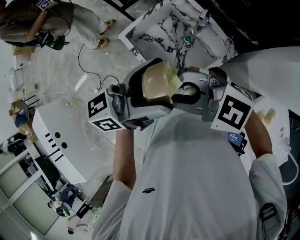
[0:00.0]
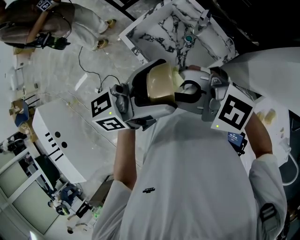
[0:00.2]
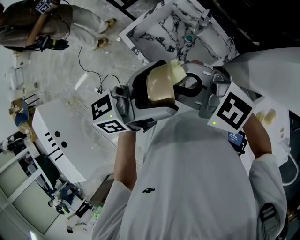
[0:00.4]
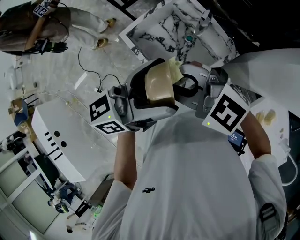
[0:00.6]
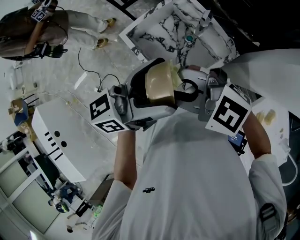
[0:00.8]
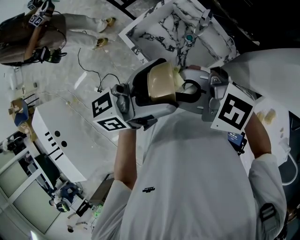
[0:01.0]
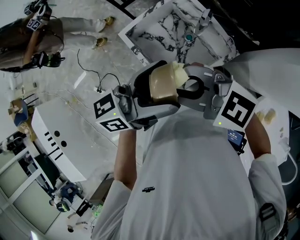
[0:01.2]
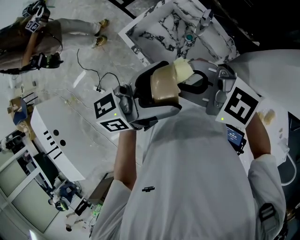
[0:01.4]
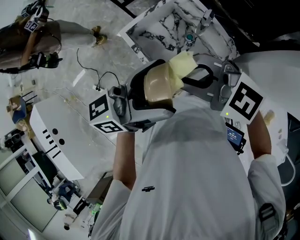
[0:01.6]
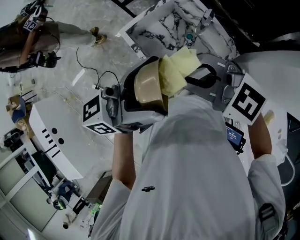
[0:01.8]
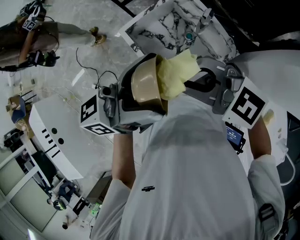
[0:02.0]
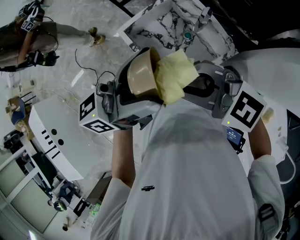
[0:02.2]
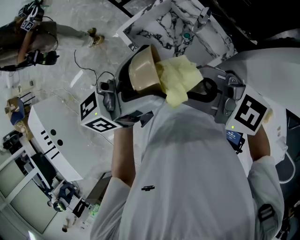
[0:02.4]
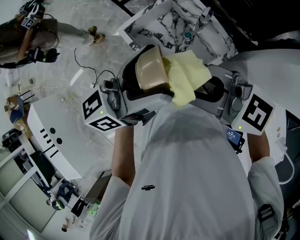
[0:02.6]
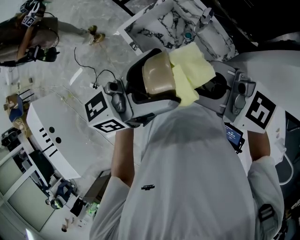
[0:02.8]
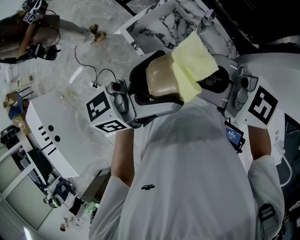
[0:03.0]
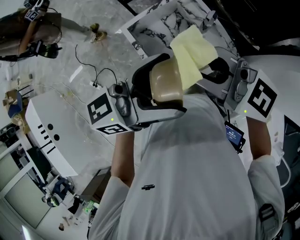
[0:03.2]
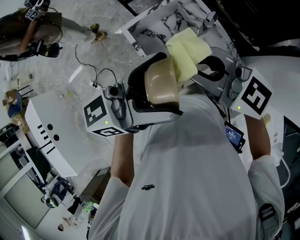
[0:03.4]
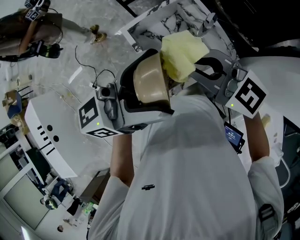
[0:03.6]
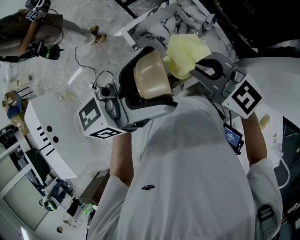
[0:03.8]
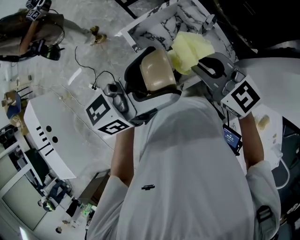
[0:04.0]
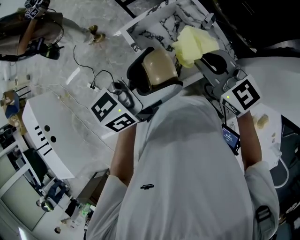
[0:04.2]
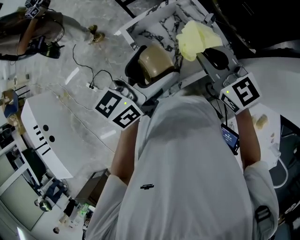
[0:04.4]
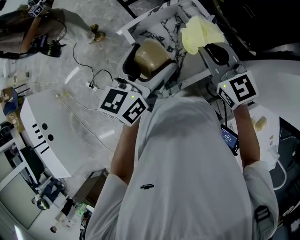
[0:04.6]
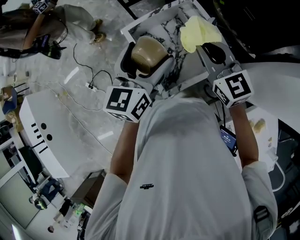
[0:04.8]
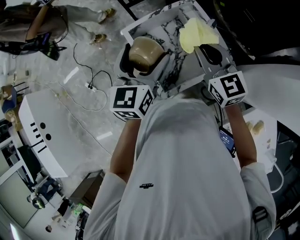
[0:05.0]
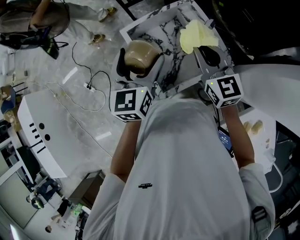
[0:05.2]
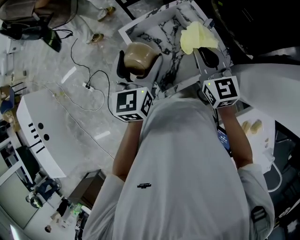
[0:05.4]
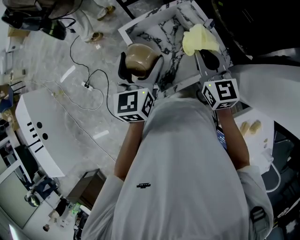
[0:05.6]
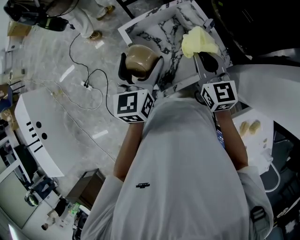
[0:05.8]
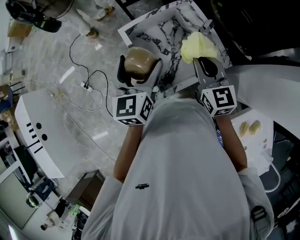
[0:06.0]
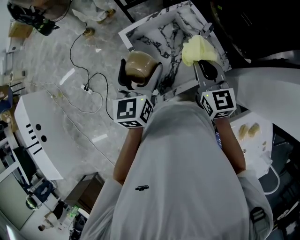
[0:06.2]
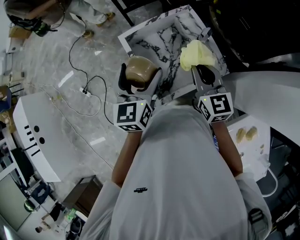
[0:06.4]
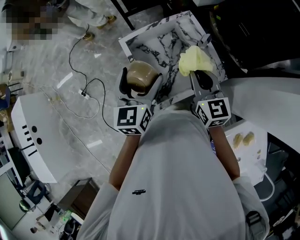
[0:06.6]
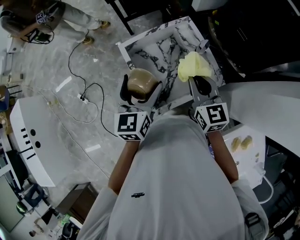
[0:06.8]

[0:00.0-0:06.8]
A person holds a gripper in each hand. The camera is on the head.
0:00.0 to 0:01.4: The grippers make only small movements.
0:01.4 to 0:02.8: The right gripper moves some 5 cm.
0:02.8 to 0:04.0: The right gripper travels downward by roughly 10 cm, and turns by approximately 30 degrees.
0:04.0 to 0:05.4: The right gripper goes about 10 cm forward, downward and to the right, and rotates roughly 30 degrees, while the left gripper shifts roughly 15 cm downward, to the left and forward, and swivels approximately 50 degrees.
0:05.4 to 0:06.8: The grippers move only a little.

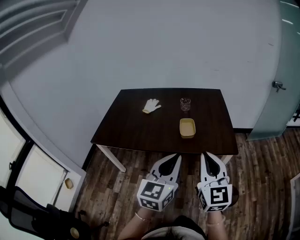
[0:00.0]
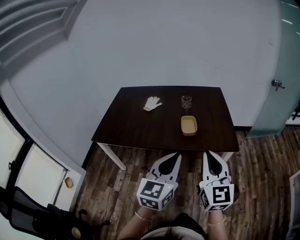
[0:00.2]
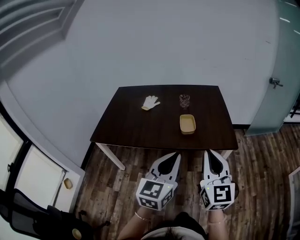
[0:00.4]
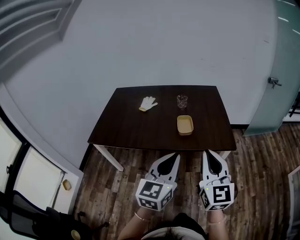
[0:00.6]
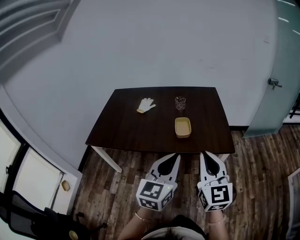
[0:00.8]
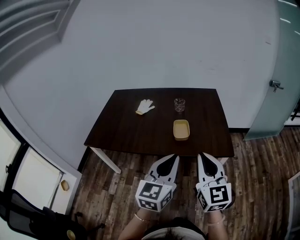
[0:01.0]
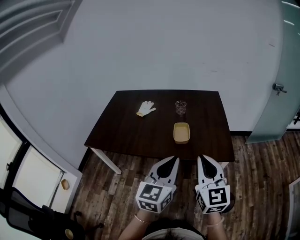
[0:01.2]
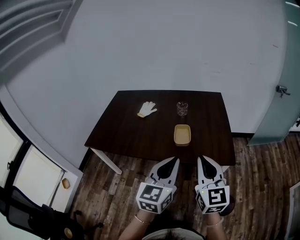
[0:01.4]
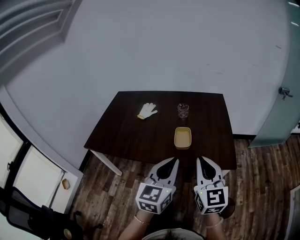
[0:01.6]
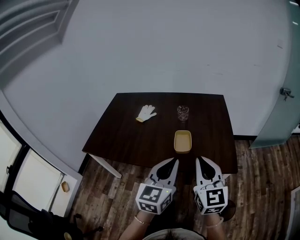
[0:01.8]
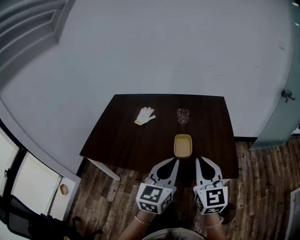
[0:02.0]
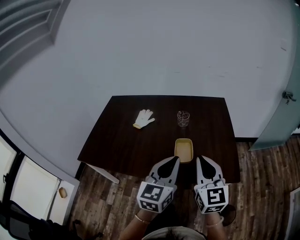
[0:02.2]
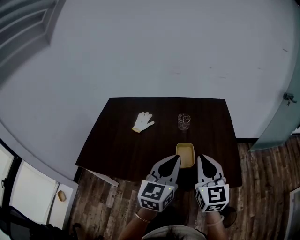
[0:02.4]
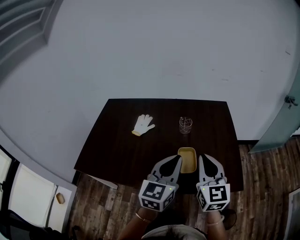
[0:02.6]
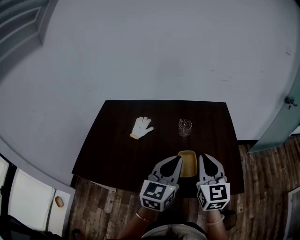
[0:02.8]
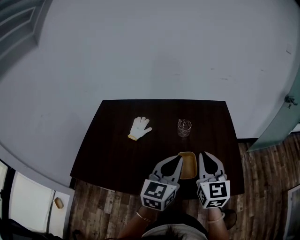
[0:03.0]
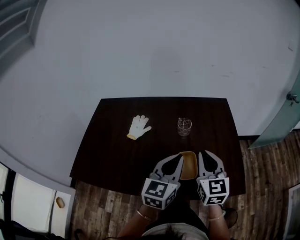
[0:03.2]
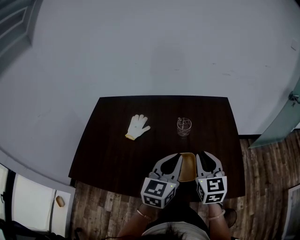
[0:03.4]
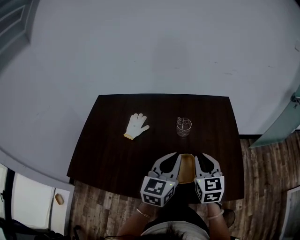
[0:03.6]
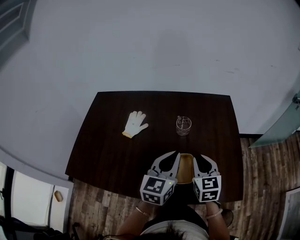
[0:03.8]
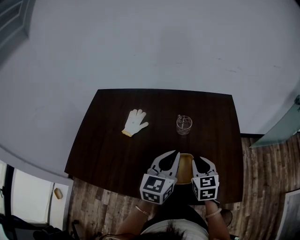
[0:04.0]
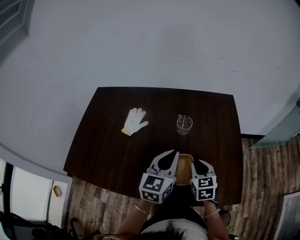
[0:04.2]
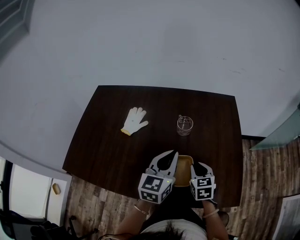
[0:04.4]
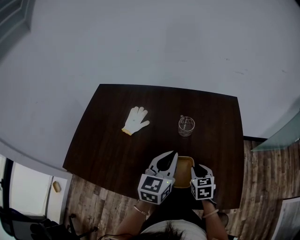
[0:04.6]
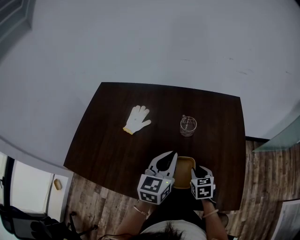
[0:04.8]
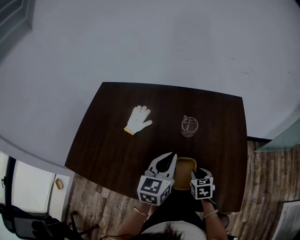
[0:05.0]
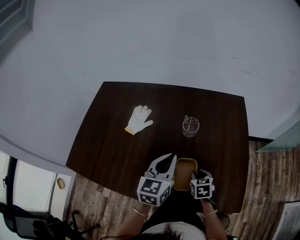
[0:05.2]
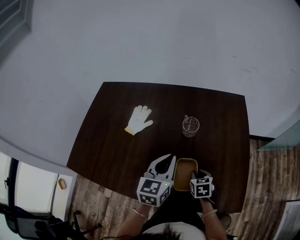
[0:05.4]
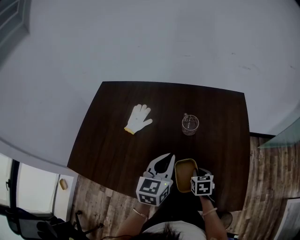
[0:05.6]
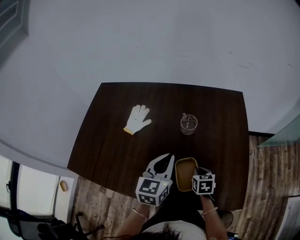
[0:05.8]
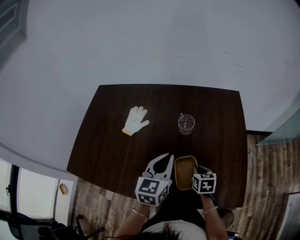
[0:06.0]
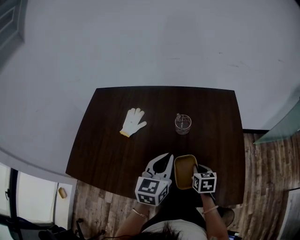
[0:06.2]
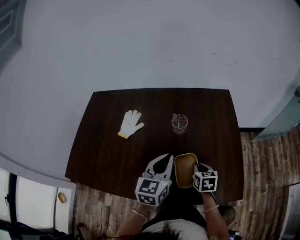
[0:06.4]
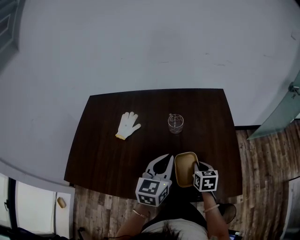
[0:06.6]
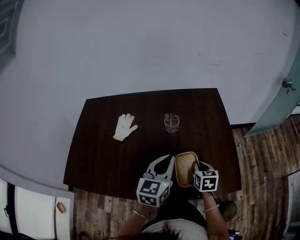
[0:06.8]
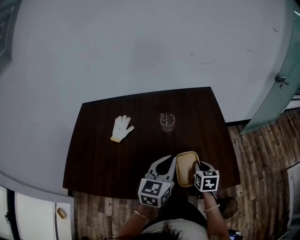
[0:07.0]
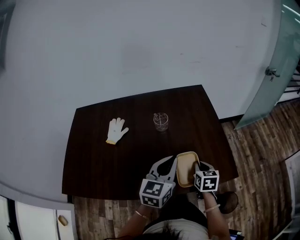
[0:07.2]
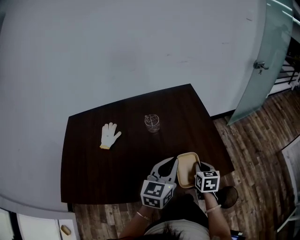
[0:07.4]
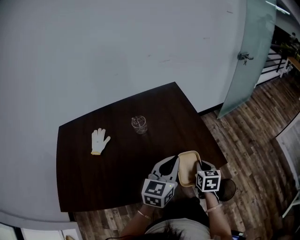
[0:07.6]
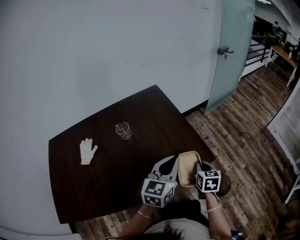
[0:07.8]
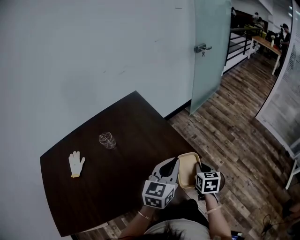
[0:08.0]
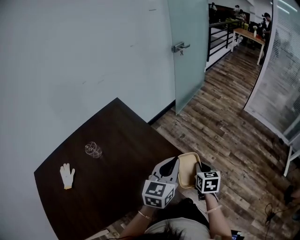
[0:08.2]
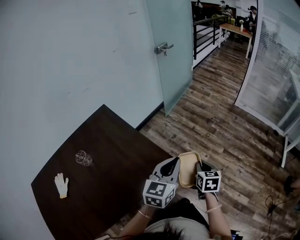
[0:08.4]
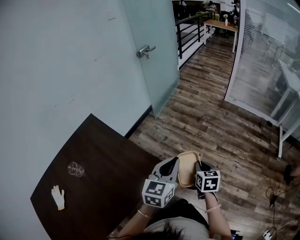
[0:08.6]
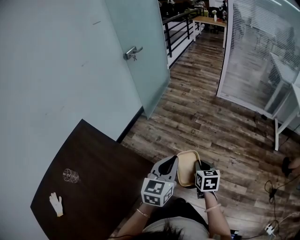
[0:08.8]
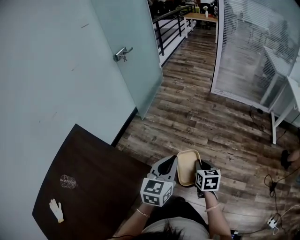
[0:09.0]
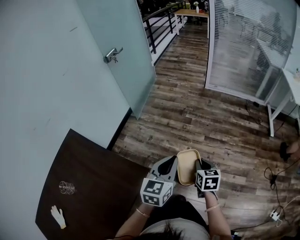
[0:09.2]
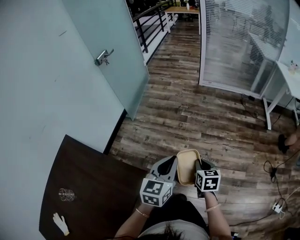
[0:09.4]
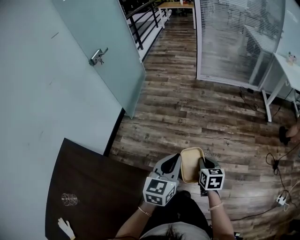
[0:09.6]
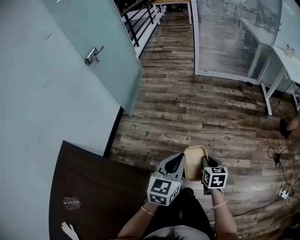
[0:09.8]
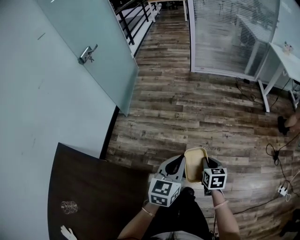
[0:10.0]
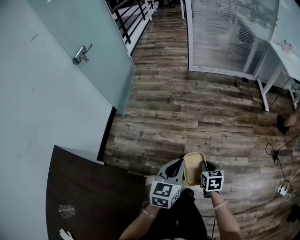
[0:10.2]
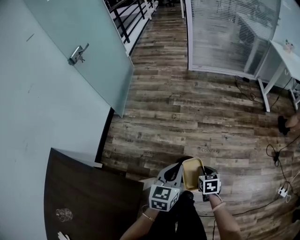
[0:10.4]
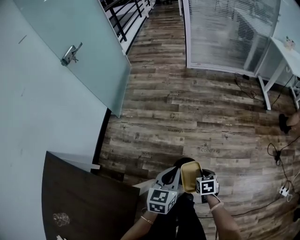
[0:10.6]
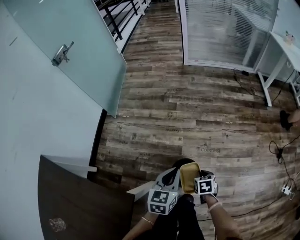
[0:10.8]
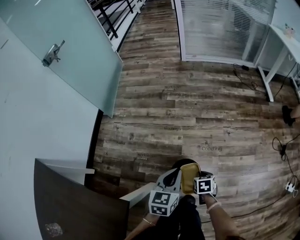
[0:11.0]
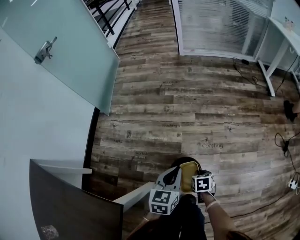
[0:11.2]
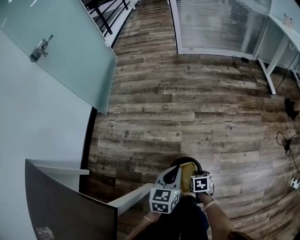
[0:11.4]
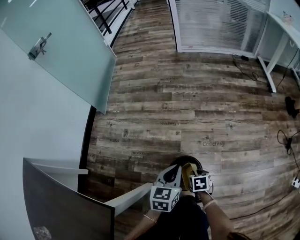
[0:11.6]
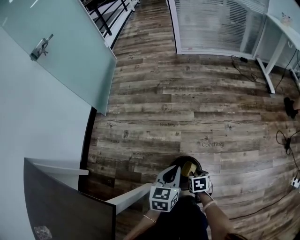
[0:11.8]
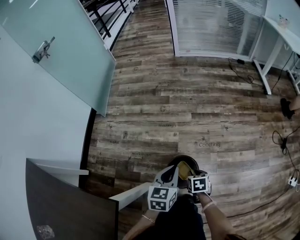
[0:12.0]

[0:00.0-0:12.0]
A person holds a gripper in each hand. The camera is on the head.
0:00.0 to 0:01.6: Both grippers move forward, some 15 cm.
0:01.6 to 0:03.0: Both grippers travel together forward, about 30 cm.
0:03.0 to 0:04.4: The left gripper moves forward and downward, about 15 cm, while the right gripper goes approximately 25 cm downward and forward, and tilts its fingers about 30 degrees downward.
0:04.4 to 0:06.0: The right gripper is displaced downward by about 5 cm.
0:06.0 to 0:07.6: The left gripper moves some 20 cm, and turns by approximately 30 degrees; the right gripper moves roughly 25 cm, and turns by approximately 30 degrees.
0:07.6 to 0:09.0: The pair of grippers is taken roughly 50 cm. The right gripper changes its angle by some 40 degrees, while the left gripper rotates about 40 degrees.
0:09.0 to 0:10.4: The right gripper moves downward, roughly 20 cm; the left gripper goes approximately 20 cm downward and forward.
0:10.4 to 0:12.0: Both grippers move downward, roughly 30 cm. The right gripper opens up.

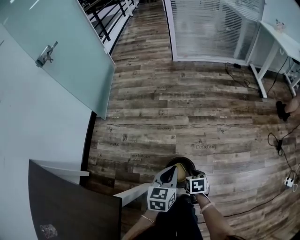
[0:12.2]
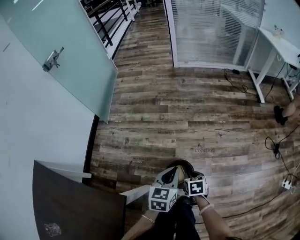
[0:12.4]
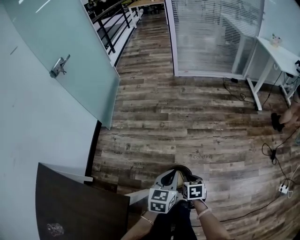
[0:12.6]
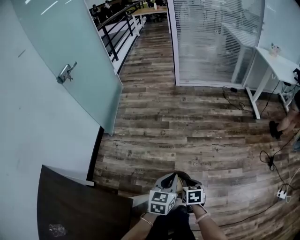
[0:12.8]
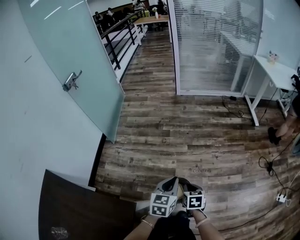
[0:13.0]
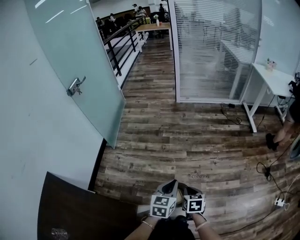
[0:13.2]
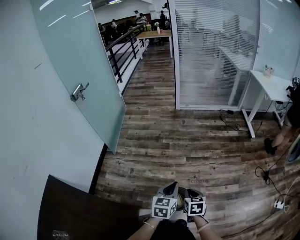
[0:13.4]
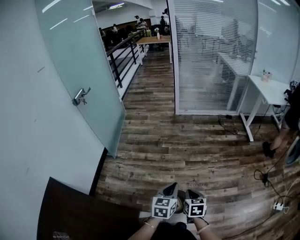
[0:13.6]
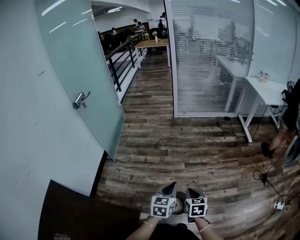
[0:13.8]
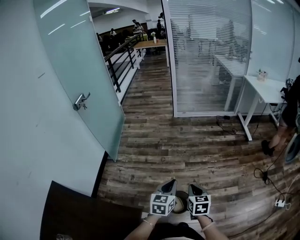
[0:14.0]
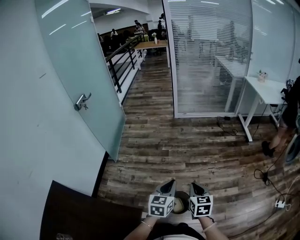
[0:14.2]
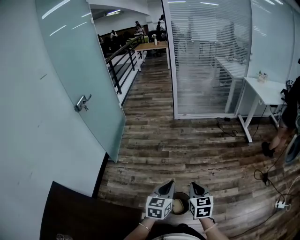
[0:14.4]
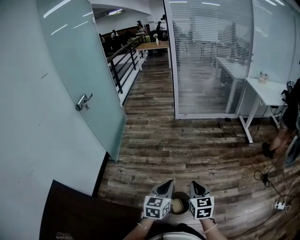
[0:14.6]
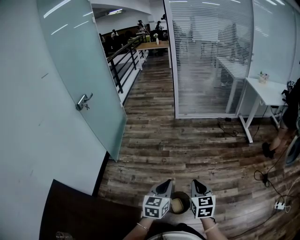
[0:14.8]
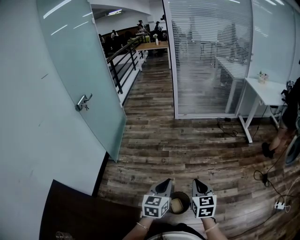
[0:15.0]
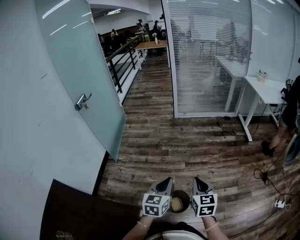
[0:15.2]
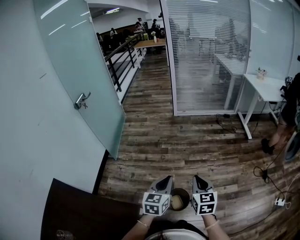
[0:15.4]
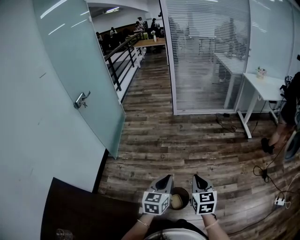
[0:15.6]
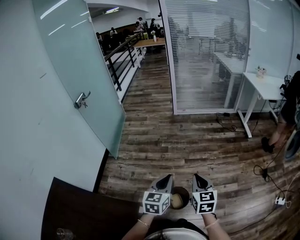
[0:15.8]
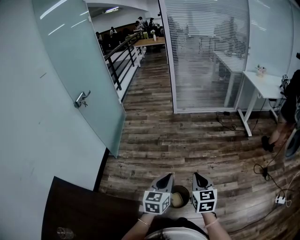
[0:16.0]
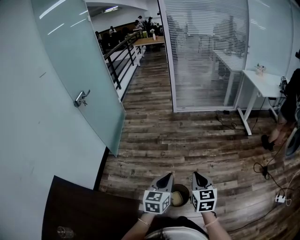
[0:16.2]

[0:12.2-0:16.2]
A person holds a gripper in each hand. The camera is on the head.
0:12.2 to 0:13.6: Both grippers travel together upward, roughly 30 cm. The right gripper changes its angle by some 20 degrees, and closes its fingers.
0:13.6 to 0:14.8: The right gripper heads upward, covering roughly 15 cm, and swivels approximately 20 degrees; the left gripper is displaced upward by about 10 cm.
0:14.8 to 0:16.2: There are only small adjustments of the grippers.

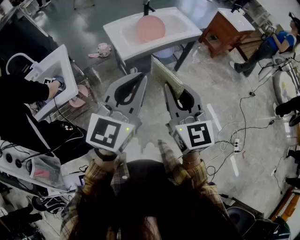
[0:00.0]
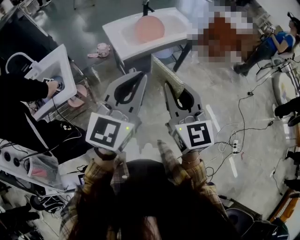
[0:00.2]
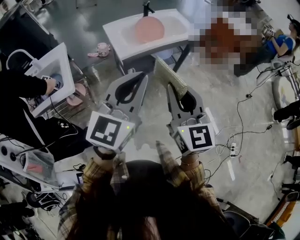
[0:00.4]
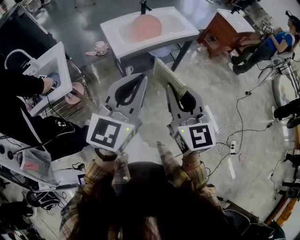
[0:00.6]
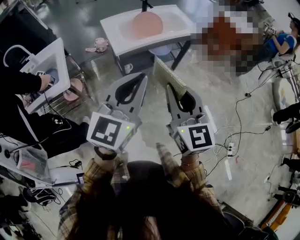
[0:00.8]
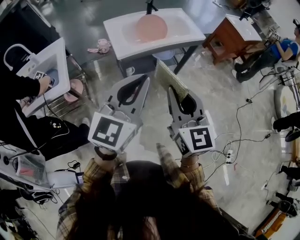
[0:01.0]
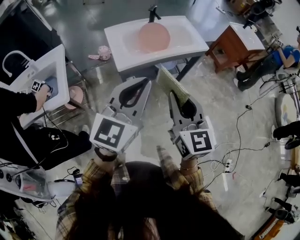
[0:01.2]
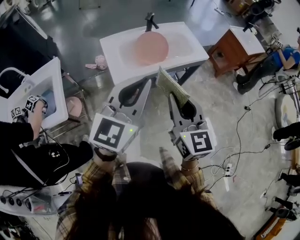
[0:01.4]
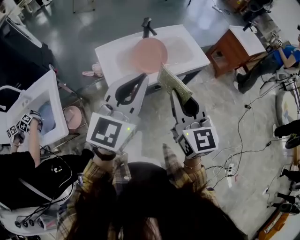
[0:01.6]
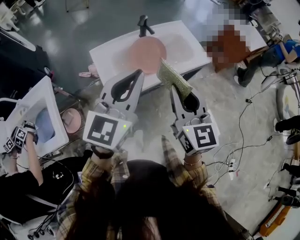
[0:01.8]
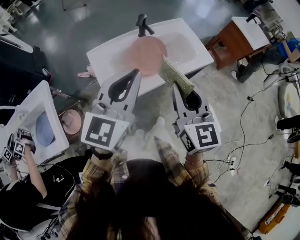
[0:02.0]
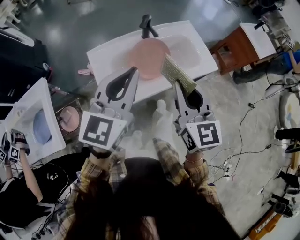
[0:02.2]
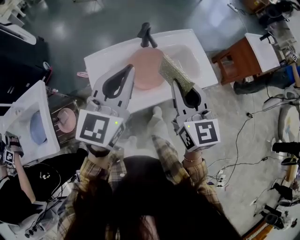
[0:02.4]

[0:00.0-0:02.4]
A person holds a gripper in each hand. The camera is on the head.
0:00.0 to 0:01.2: The right gripper travels forward and to the right by about 15 cm; the left gripper moves forward, about 10 cm.
0:01.2 to 0:02.4: Both grippers move forward, about 40 cm.
